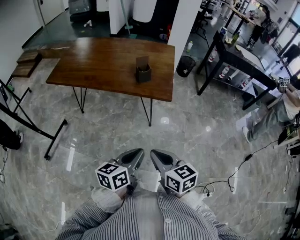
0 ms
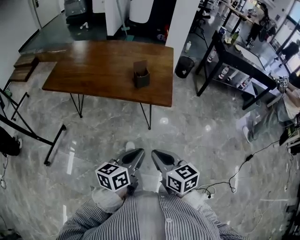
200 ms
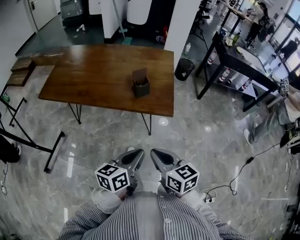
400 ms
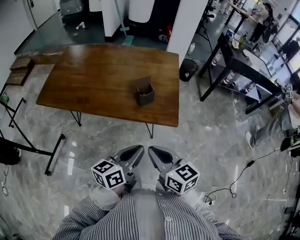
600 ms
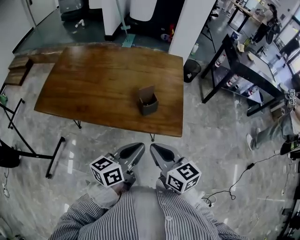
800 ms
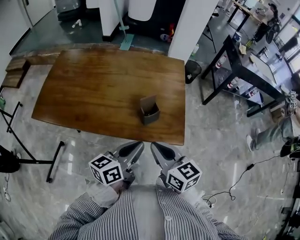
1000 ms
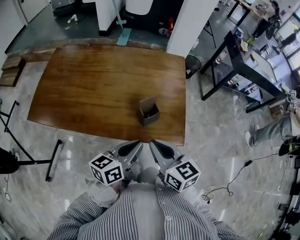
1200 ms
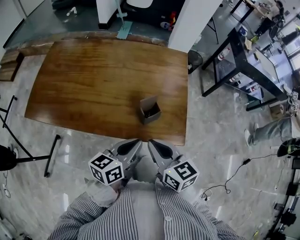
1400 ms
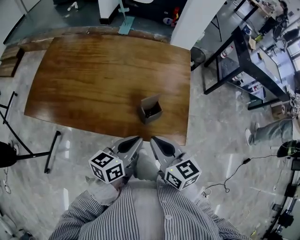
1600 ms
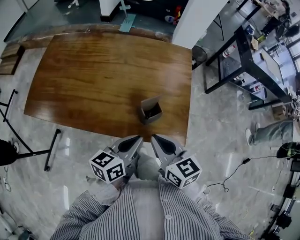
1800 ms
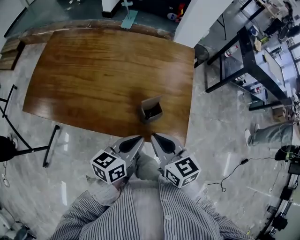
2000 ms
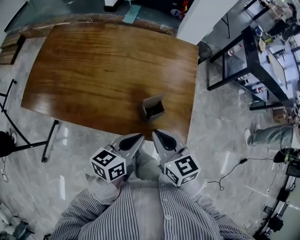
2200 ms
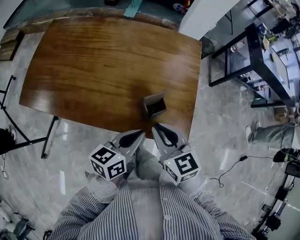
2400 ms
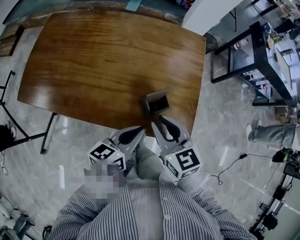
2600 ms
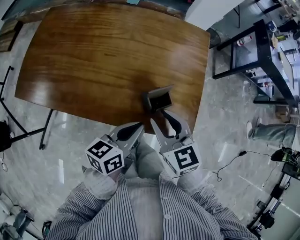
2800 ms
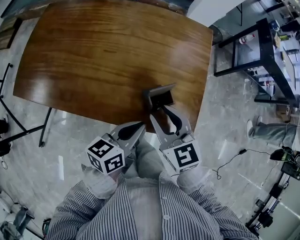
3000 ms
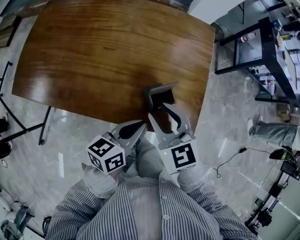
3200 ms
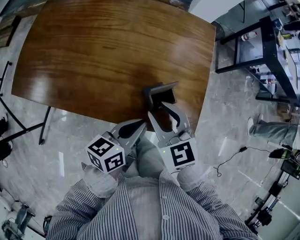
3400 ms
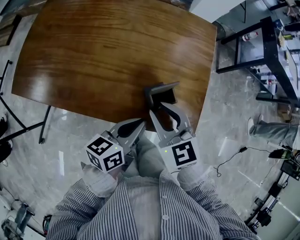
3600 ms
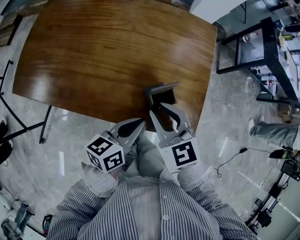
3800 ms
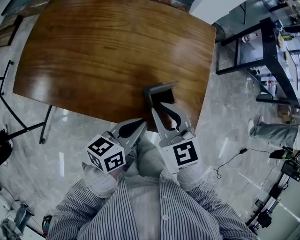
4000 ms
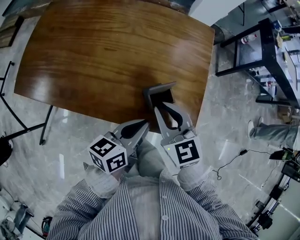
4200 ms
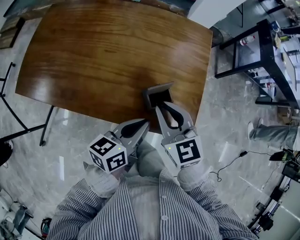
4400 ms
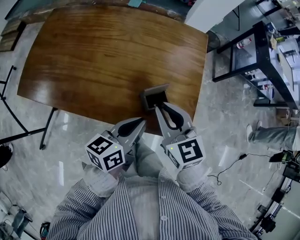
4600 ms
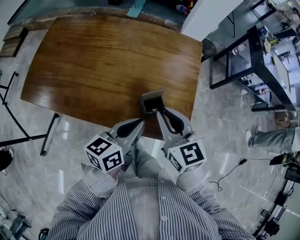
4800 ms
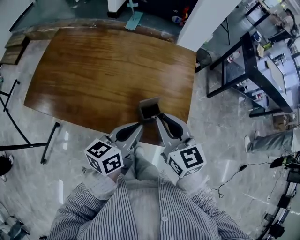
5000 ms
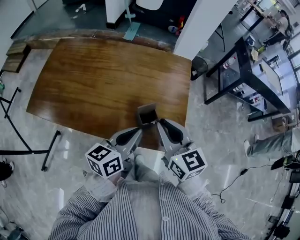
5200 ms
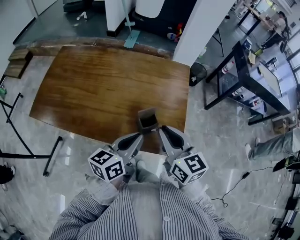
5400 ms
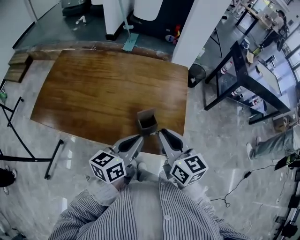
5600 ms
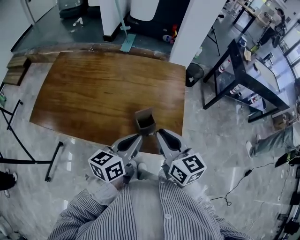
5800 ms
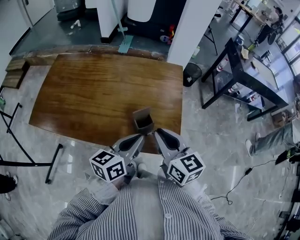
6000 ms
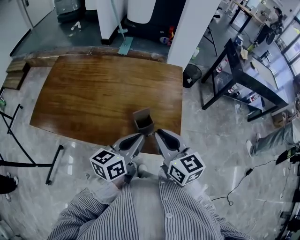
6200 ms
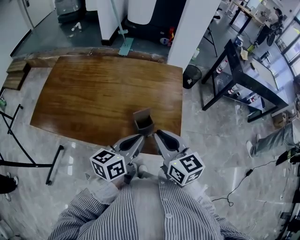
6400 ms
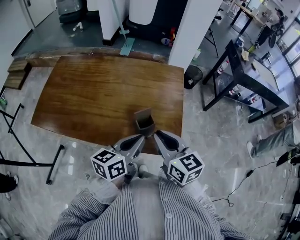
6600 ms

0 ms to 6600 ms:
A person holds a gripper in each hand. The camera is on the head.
0 ms to 1600 ms: Both grippers travel together forward, about 35 cm.
1600 ms to 3200 ms: The left gripper changes place by about 5 cm, while the right gripper travels forward by roughly 10 cm, rotates roughly 30 degrees, and opens.
3200 ms to 5000 ms: Both grippers move upward, roughly 10 cm. The right gripper closes.
5000 ms to 6600 ms: There are only small adjustments of the grippers.

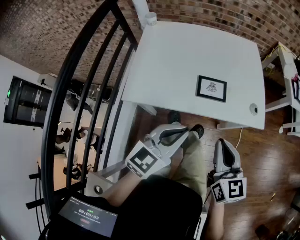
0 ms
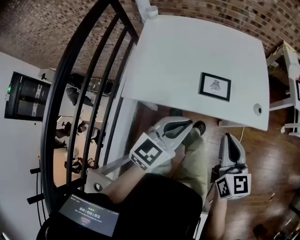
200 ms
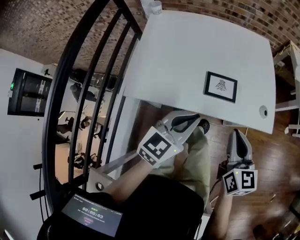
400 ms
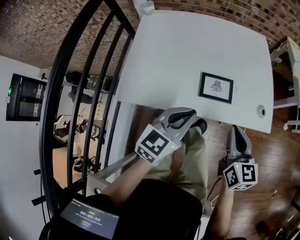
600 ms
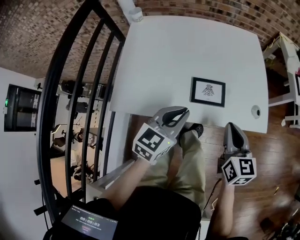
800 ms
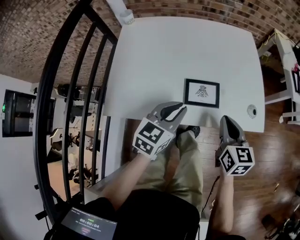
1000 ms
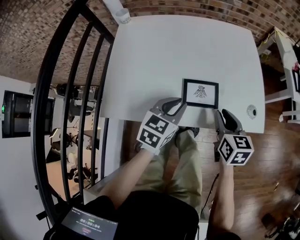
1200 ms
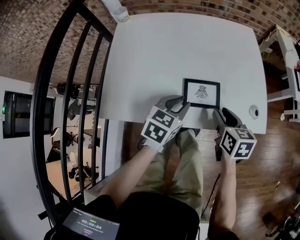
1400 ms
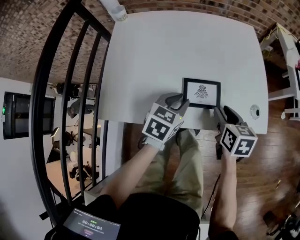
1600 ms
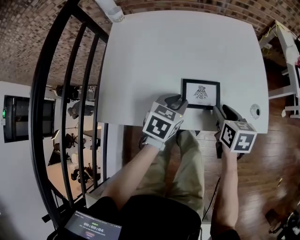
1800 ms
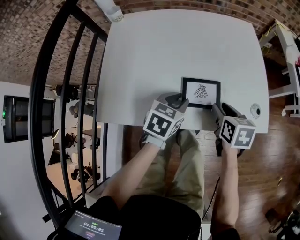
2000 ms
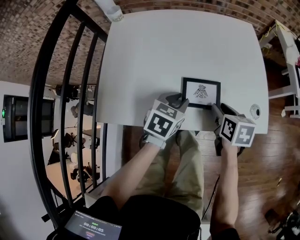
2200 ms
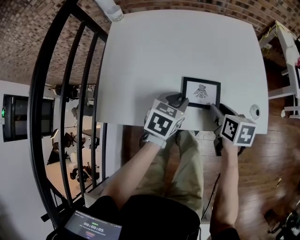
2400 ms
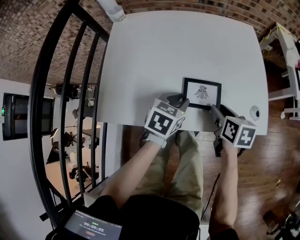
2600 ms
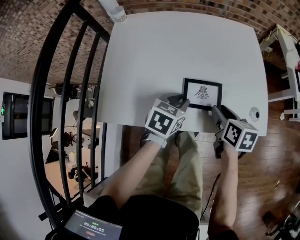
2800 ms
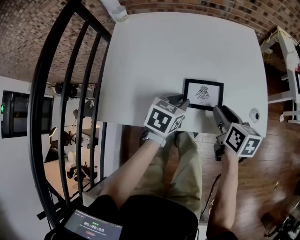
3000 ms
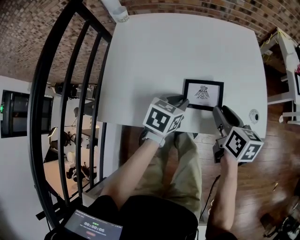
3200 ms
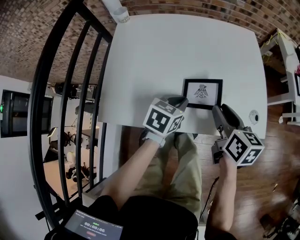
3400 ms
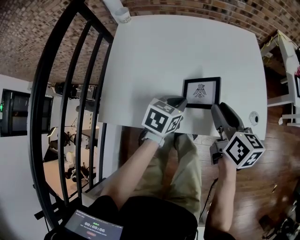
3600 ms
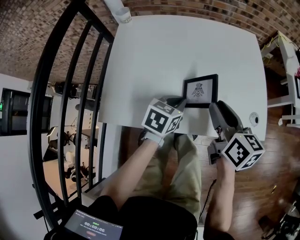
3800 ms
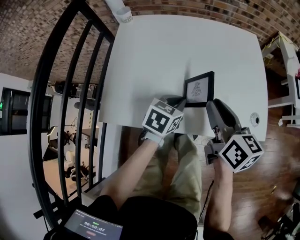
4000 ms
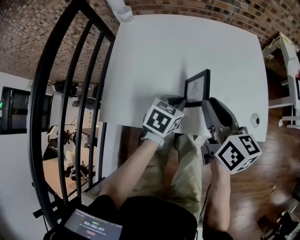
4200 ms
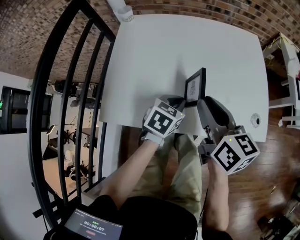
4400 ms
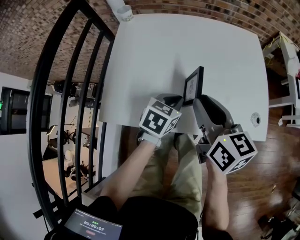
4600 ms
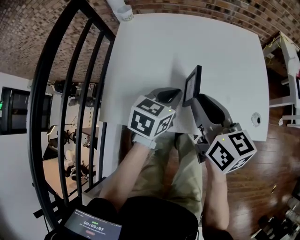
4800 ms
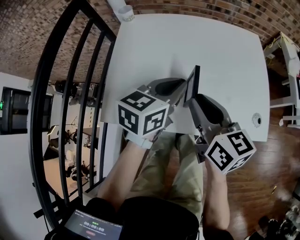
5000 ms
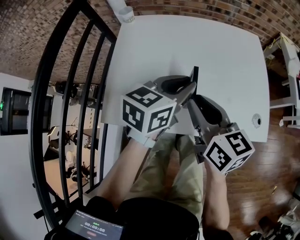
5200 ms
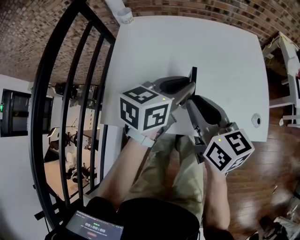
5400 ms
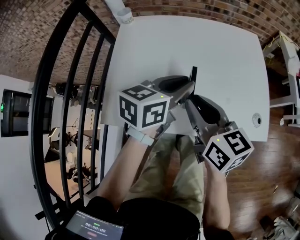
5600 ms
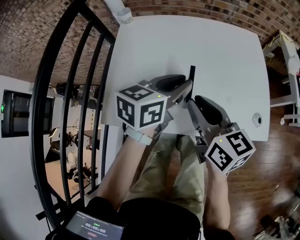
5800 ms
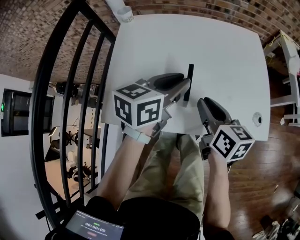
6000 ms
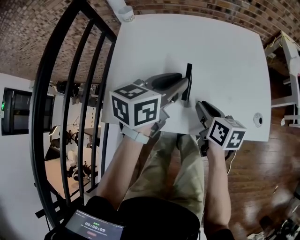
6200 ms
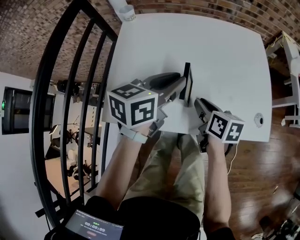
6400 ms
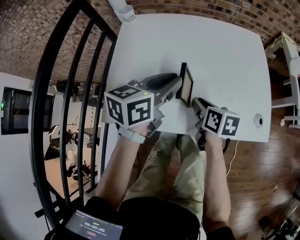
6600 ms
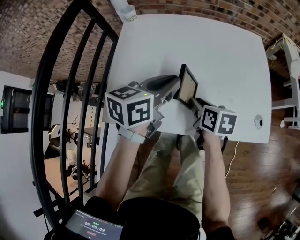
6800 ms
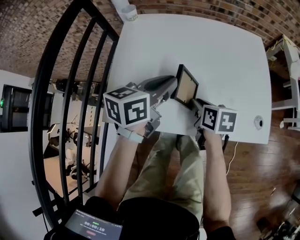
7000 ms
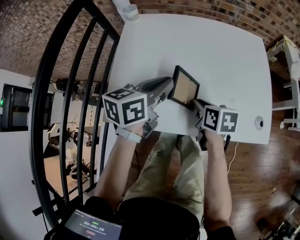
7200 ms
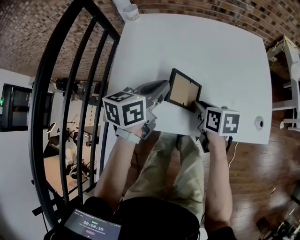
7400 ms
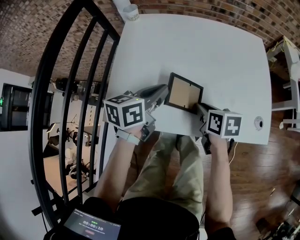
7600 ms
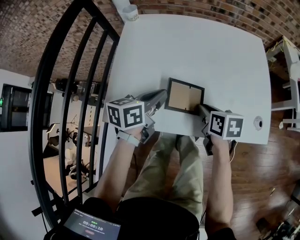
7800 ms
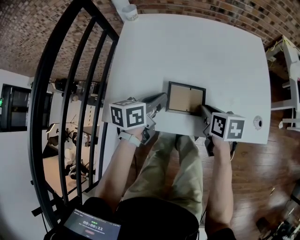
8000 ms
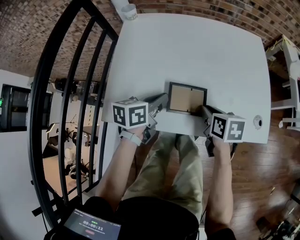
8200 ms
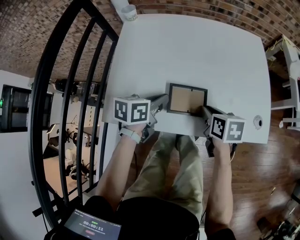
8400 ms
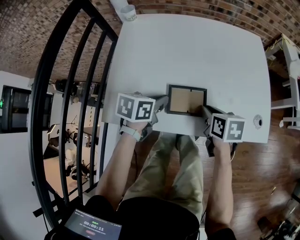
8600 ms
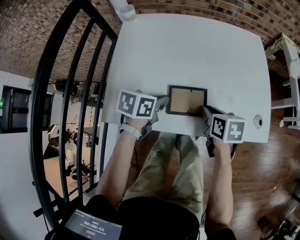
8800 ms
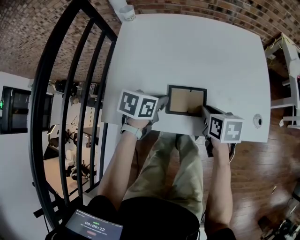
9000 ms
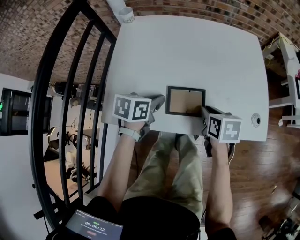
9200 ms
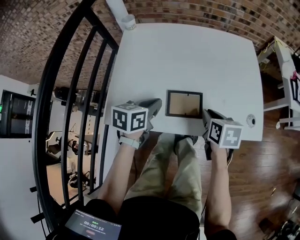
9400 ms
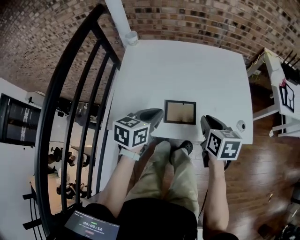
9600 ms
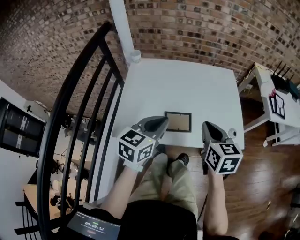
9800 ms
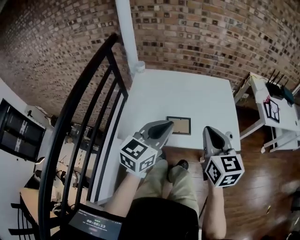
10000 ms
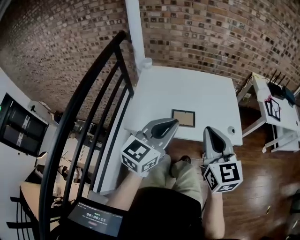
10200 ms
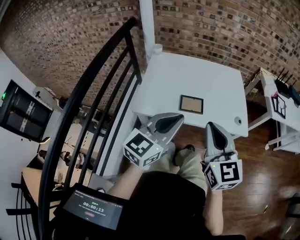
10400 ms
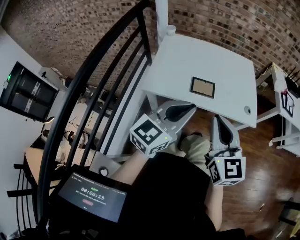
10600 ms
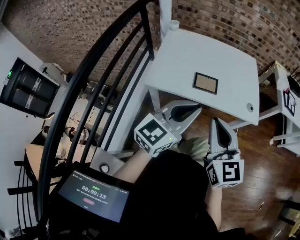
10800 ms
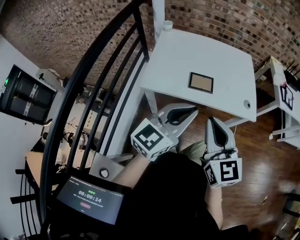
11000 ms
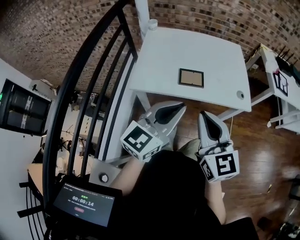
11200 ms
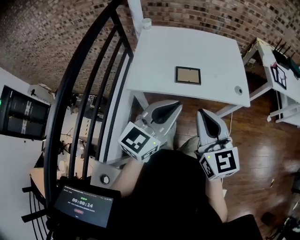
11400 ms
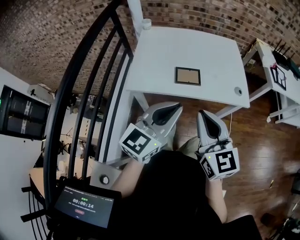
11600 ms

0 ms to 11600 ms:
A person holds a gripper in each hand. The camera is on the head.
0 ms to 1400 ms: Both grippers travel together forward and downward, approximately 25 cm. The right gripper turns by approximately 20 degrees, and opens up. Meanwhile the left gripper swivels some 20 degrees, and opens up.
1400 ms to 2800 ms: The grippers stay close to where they were, moving slightly.
2800 ms to 4400 ms: The left gripper closes its fingers, while the right gripper travels upward and to the left by roughly 20 cm, and rotates roughly 30 degrees.
4400 ms to 5800 ms: The left gripper goes approximately 15 cm upward, swivels approximately 30 degrees, and opens up.
5800 ms to 7200 ms: The right gripper travels downward by approximately 15 cm, and points its fingers some 30 degrees further downward. Meanwhile the left gripper moves to the left, roughly 5 cm.
7200 ms to 8800 ms: The left gripper heads downward, covering some 10 cm, and rotates roughly 30 degrees, while the right gripper moves roughly 5 cm.
8800 ms to 10200 ms: Both grippers travel together upward and backward, roughly 40 cm. The left gripper tips its fingers upward by some 40 degrees. Meanwhile the right gripper tilts its fingers about 40 degrees upward.
10200 ms to 11600 ms: Both grippers travel together backward and downward, some 15 cm.

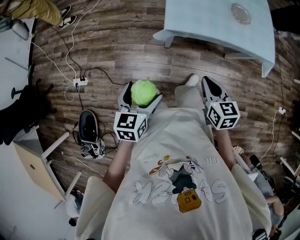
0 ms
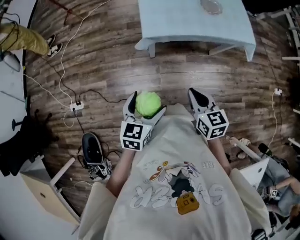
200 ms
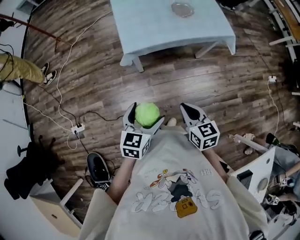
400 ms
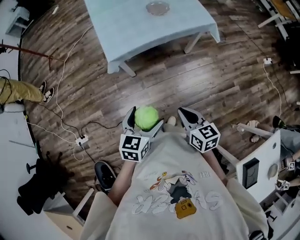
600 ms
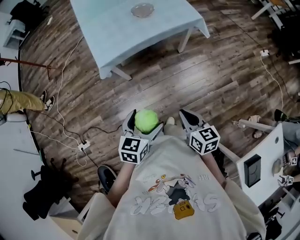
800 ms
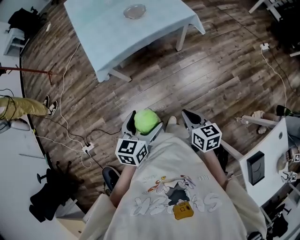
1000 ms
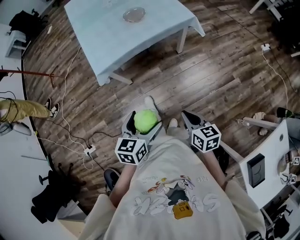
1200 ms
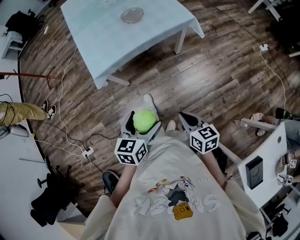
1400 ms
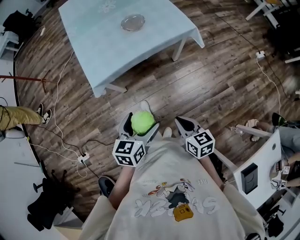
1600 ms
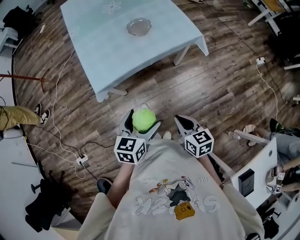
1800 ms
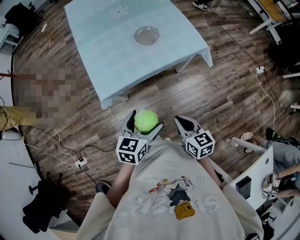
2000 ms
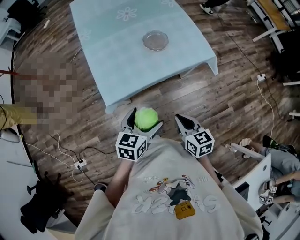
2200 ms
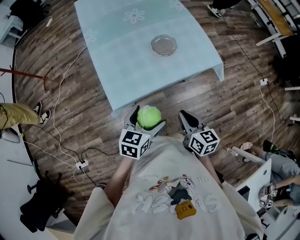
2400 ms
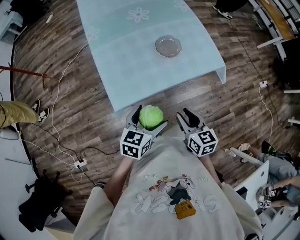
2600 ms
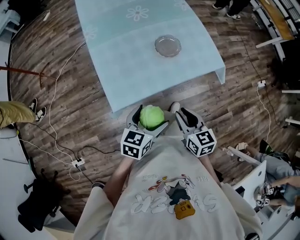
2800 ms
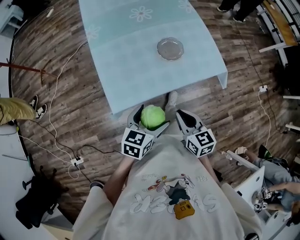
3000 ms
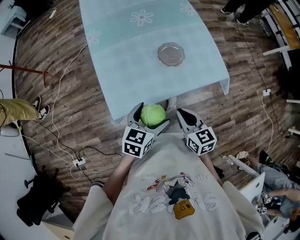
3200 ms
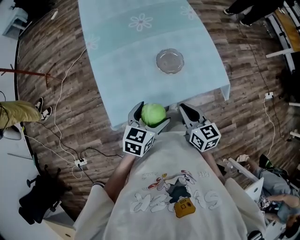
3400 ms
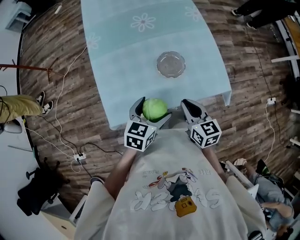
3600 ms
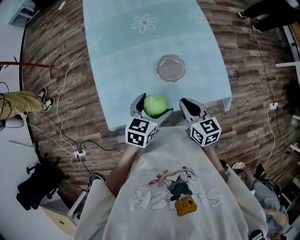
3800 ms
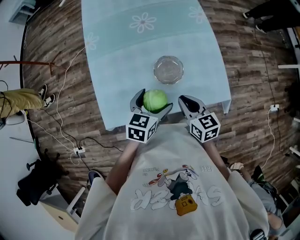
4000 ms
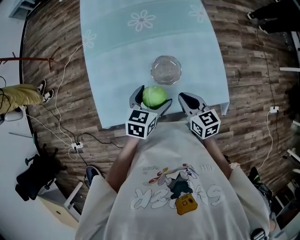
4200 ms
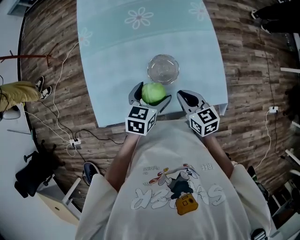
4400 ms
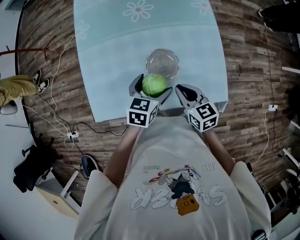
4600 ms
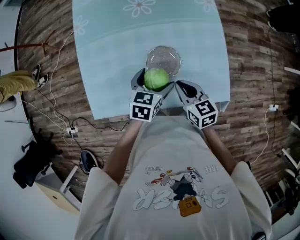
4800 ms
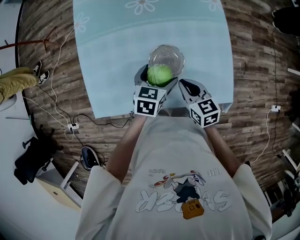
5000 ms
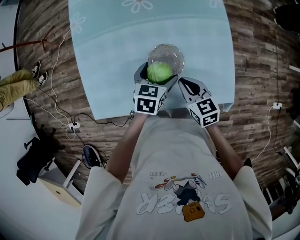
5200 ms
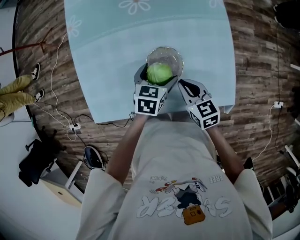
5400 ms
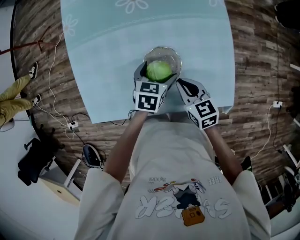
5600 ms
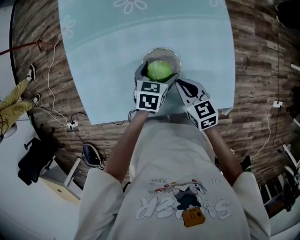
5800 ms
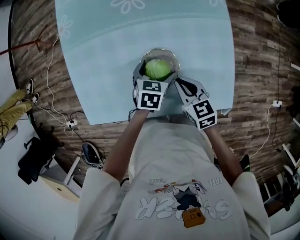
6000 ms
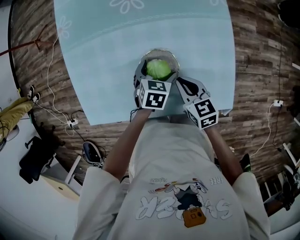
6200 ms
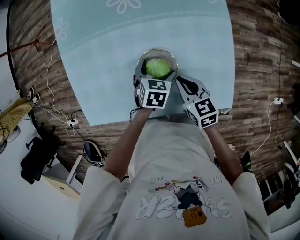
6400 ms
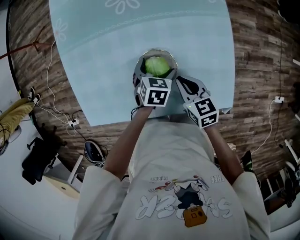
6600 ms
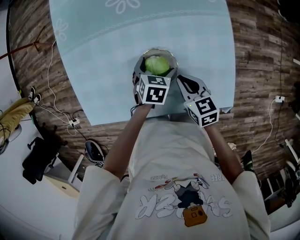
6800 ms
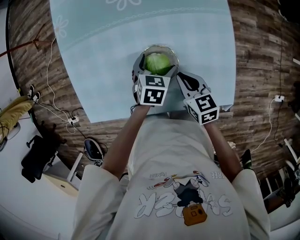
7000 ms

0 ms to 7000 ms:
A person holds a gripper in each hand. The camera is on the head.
0 ms to 1400 ms: The left gripper heads to the right, covering some 30 cm, and turns by about 30 degrees. Meanwhile the right gripper moves to the right and backward, about 30 cm, and turns by some 20 degrees.
1400 ms to 2800 ms: Both grippers move forward and to the left, about 30 cm. The right gripper opens its fingers.
2800 ms to 4200 ms: The two grippers go some 25 cm forward. The right gripper closes up.
4200 ms to 5600 ms: The right gripper is displaced downward and forward by about 10 cm. Meanwhile the left gripper travels downward, forward and to the right by some 15 cm.
